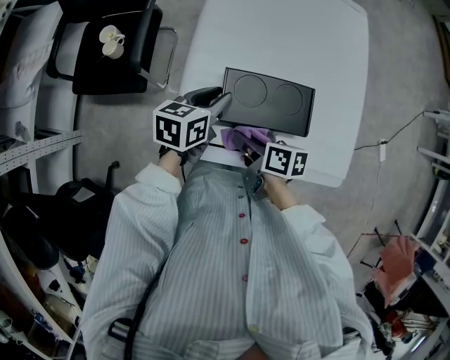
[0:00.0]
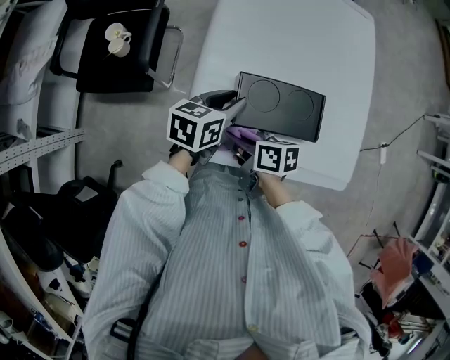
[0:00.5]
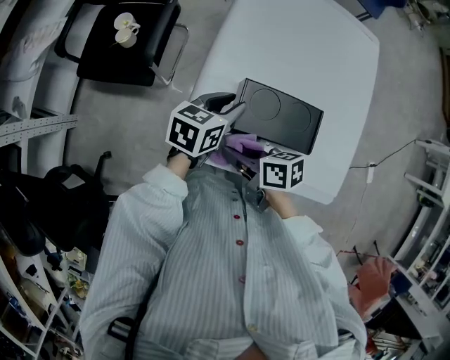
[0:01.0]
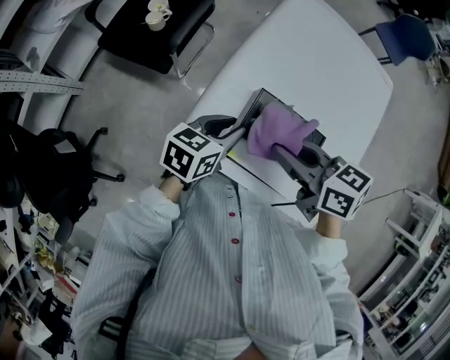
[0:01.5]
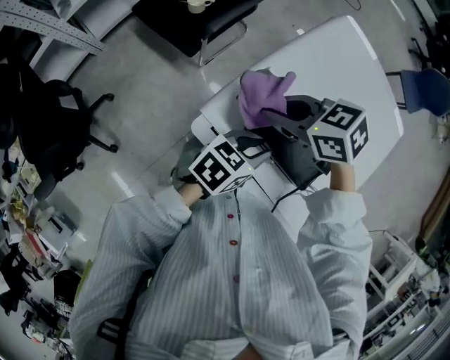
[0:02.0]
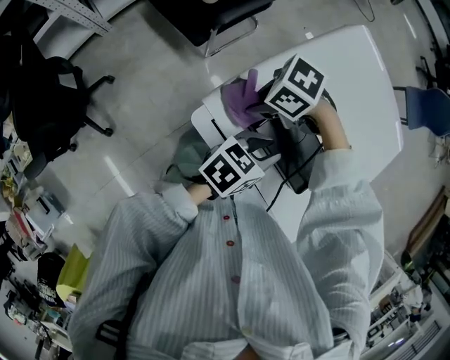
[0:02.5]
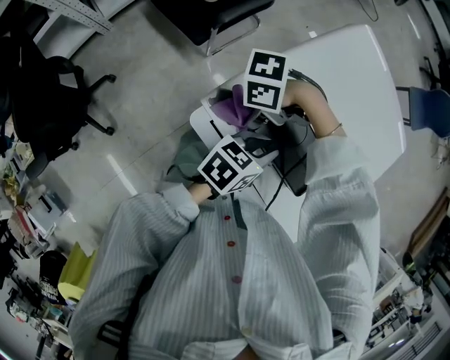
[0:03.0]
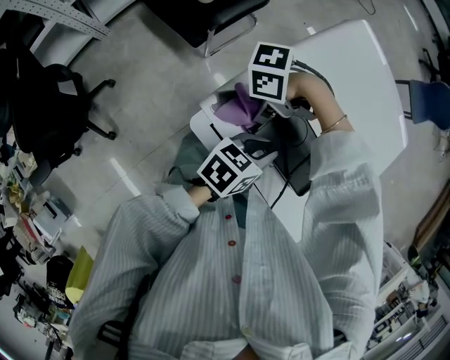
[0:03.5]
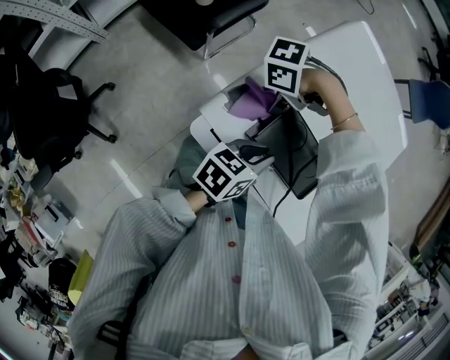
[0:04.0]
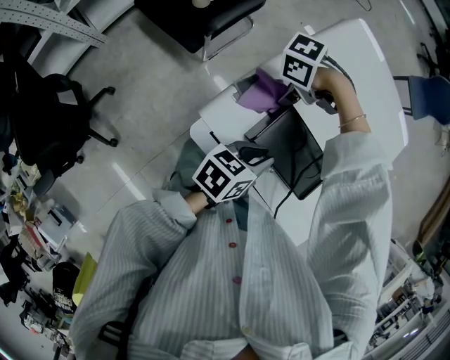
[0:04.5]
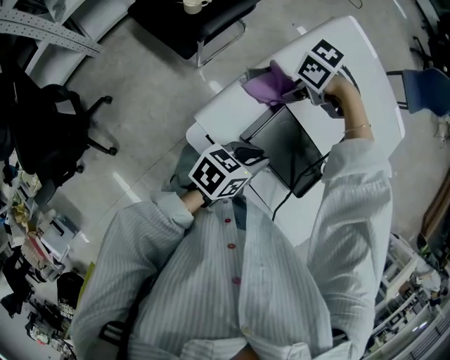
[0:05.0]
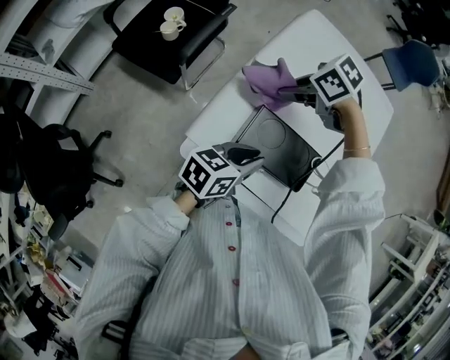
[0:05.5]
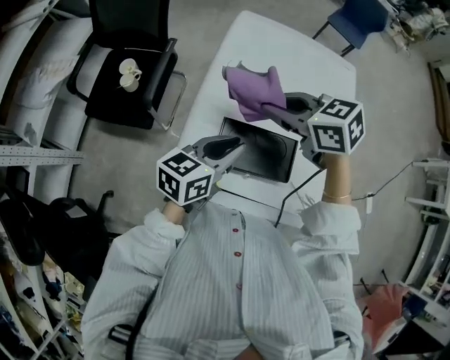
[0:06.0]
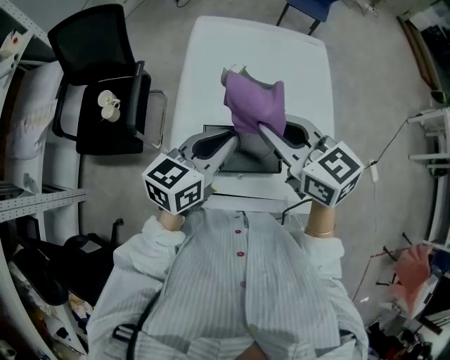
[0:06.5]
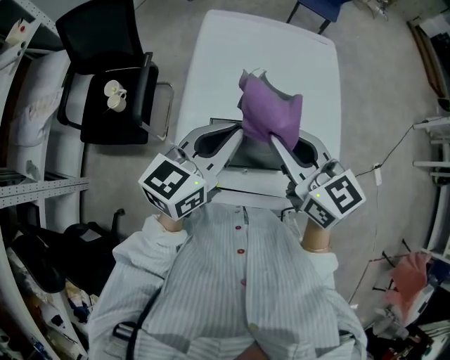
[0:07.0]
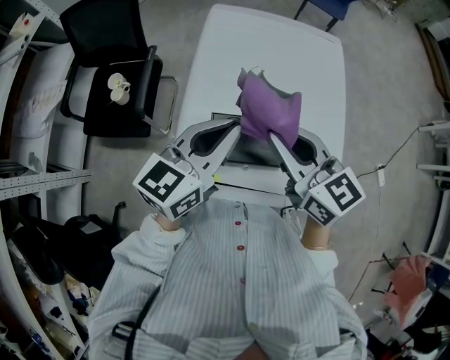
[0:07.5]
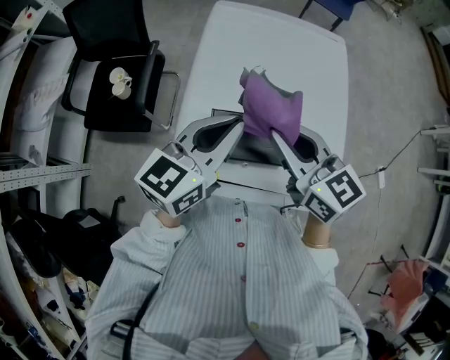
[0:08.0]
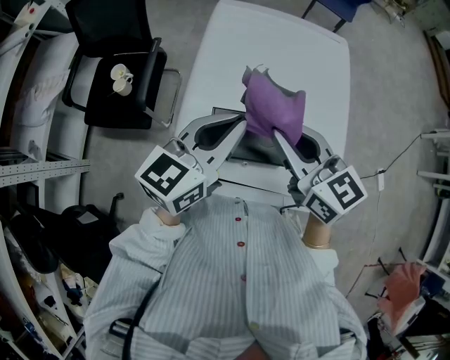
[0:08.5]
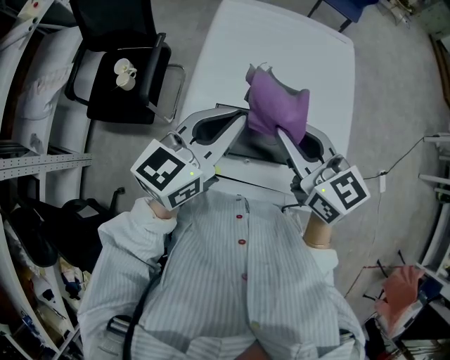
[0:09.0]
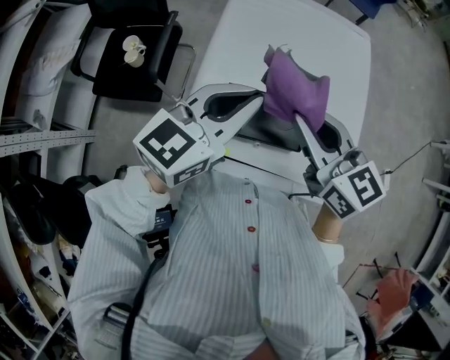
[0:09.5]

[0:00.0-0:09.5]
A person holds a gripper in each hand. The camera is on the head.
0:00.0 to 0:02.0: The left gripper ends up roughly 10 cm from where it was; the right gripper is displaced upward by roughly 15 cm, and rolls counterclockwise, seen from behind, by roughly 70 degrees.
0:02.0 to 0:04.0: The right gripper shifts about 15 cm downward, and rotates some 60 degrees.
0:04.0 to 0:05.5: The right gripper moves approximately 15 cm, and turns by roughly 50 degrees.
0:05.5 to 0:07.5: The left gripper is displaced upward by about 20 cm, and swivels about 30 degrees, while the right gripper changes place by some 25 cm, and tilts its fingers some 40 degrees upward.
0:07.5 to 0:09.5: There are only small adjustments of the grippers.

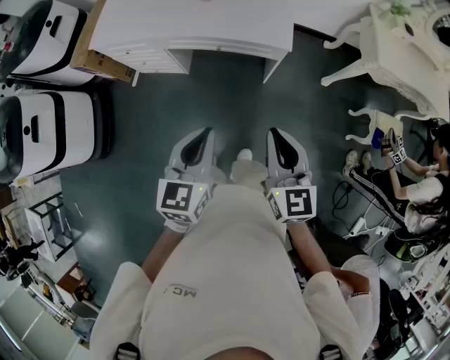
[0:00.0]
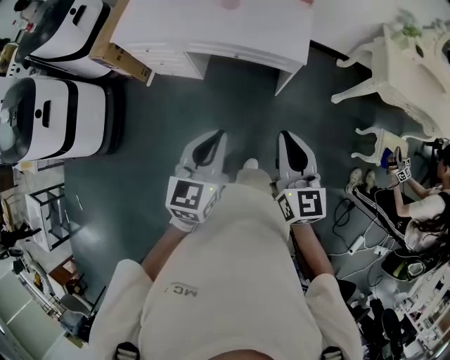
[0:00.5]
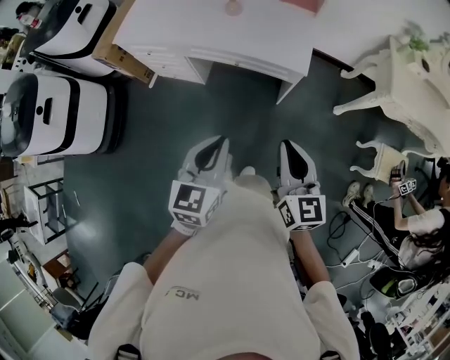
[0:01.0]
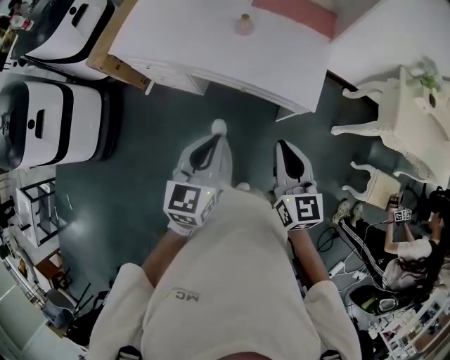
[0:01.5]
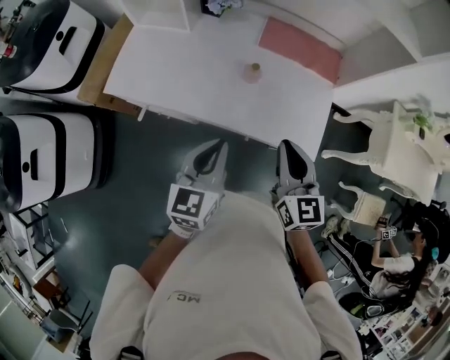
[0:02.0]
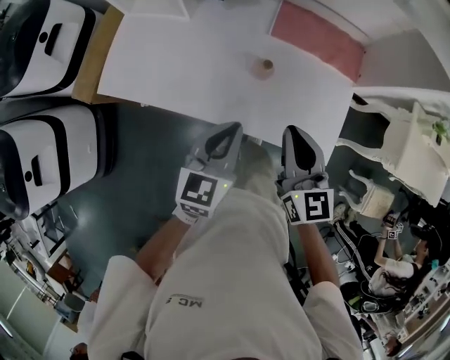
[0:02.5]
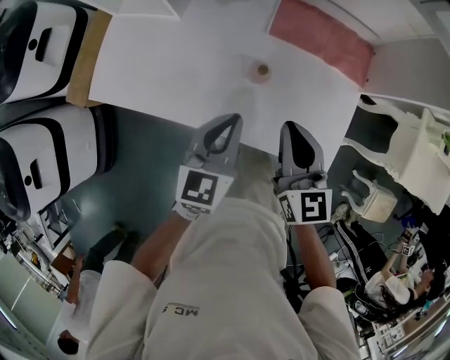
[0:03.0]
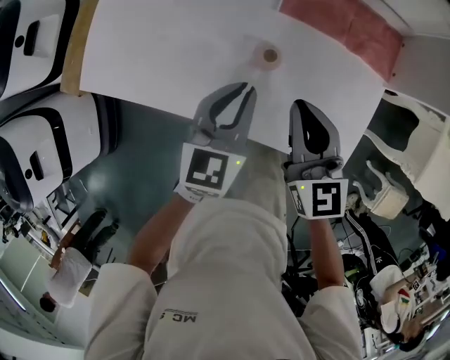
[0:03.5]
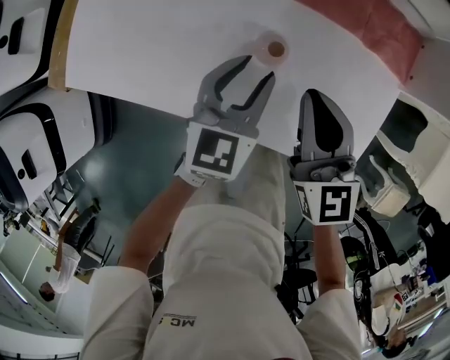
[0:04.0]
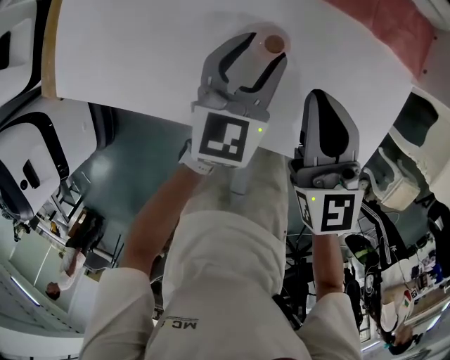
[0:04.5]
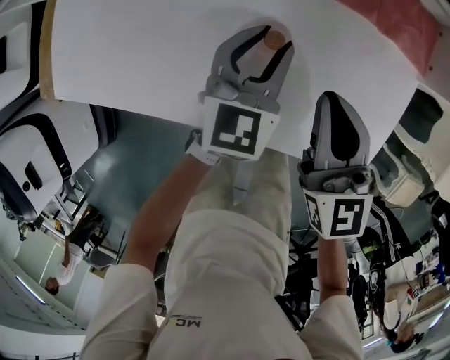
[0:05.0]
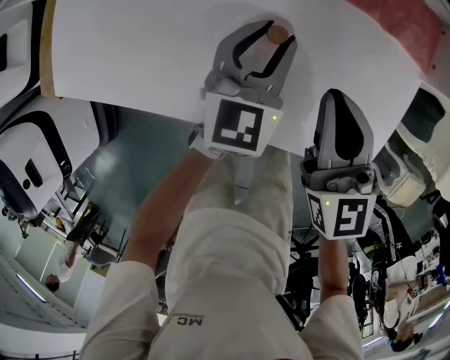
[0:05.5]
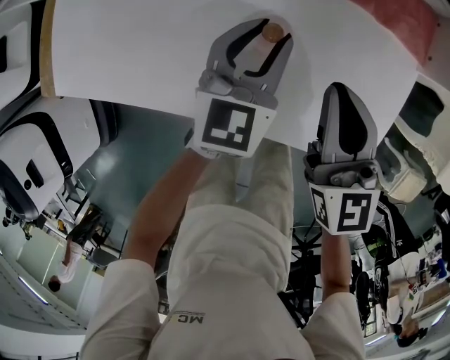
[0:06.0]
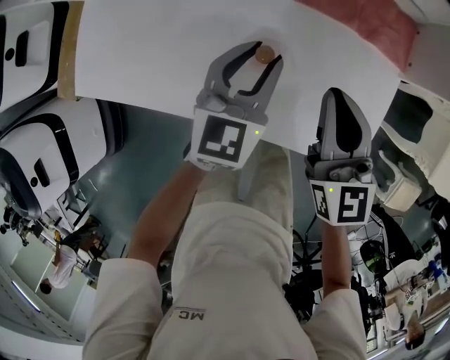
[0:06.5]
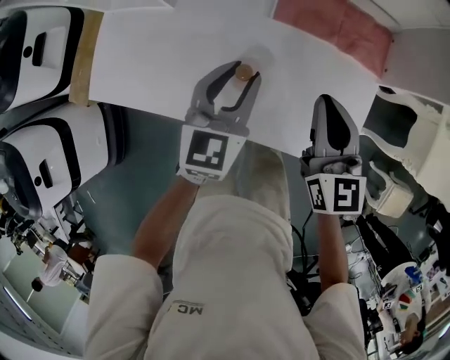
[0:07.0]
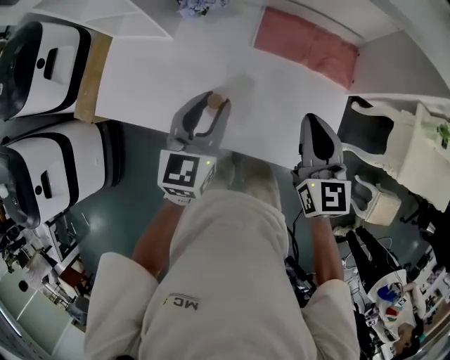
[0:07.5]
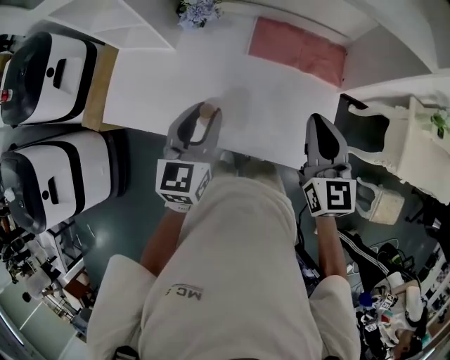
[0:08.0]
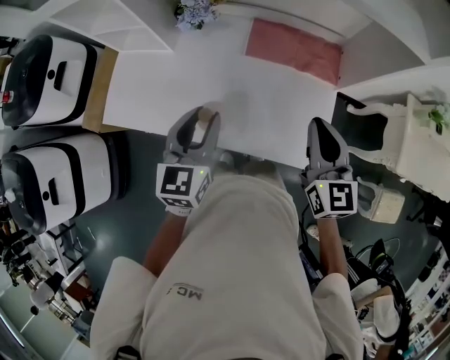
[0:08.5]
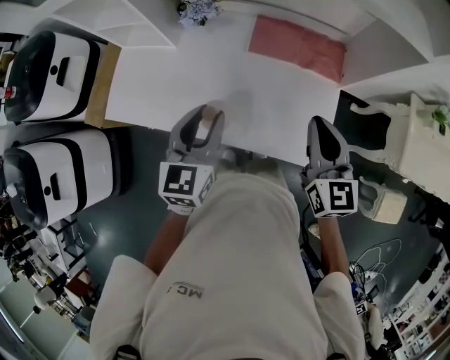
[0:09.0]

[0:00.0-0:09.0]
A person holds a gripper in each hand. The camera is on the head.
0:00.0 to 0:02.0: The two grippers travel together, forward, about 40 cm.
0:02.0 to 0:04.5: The two grippers go roughly 35 cm forward and downward. The left gripper opens.
0:04.5 to 0:07.0: The grippers both shift upward by some 15 cm.
0:07.0 to 0:09.0: The right gripper is displaced upward, backward and to the right by approximately 15 cm. Meanwhile the left gripper shifts roughly 15 cm upward and backward.

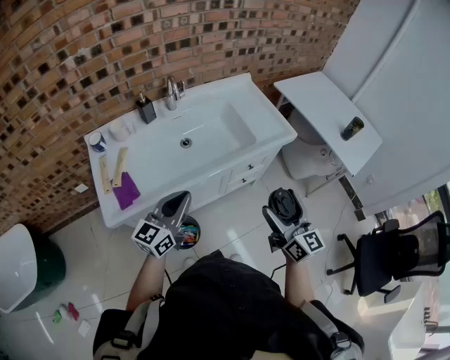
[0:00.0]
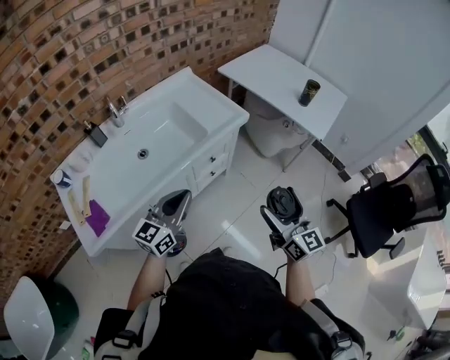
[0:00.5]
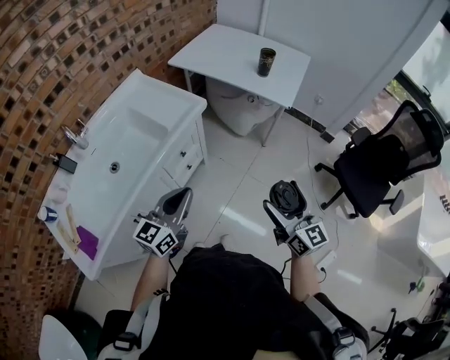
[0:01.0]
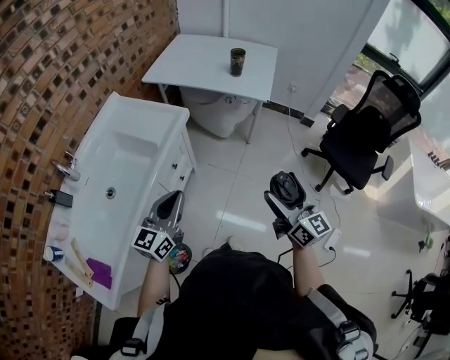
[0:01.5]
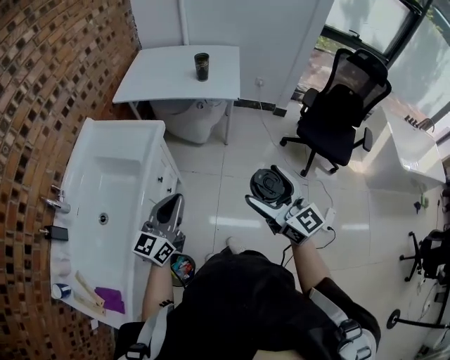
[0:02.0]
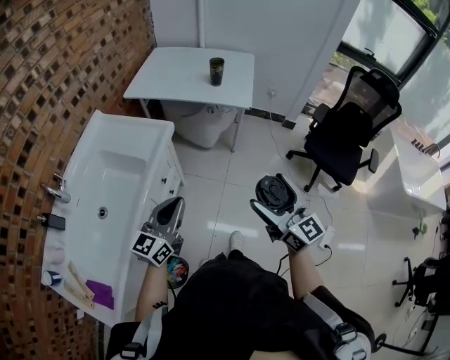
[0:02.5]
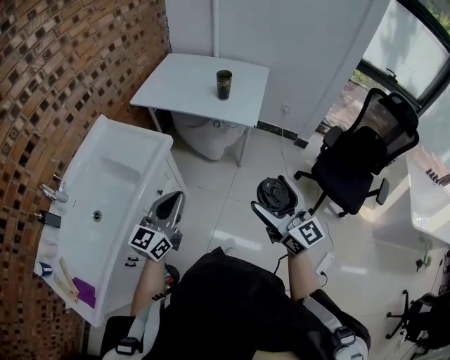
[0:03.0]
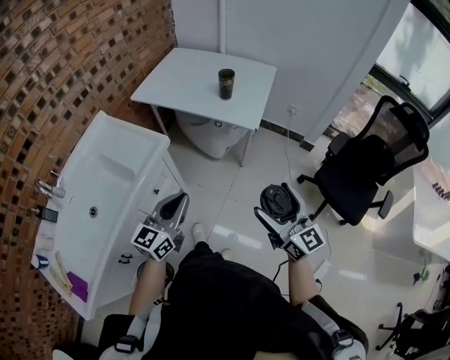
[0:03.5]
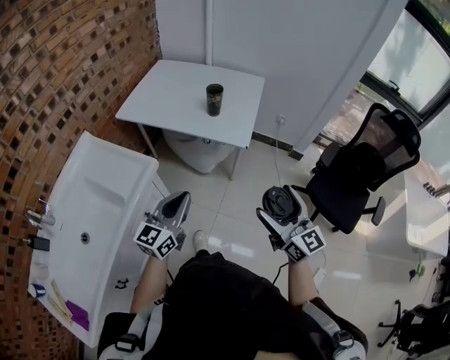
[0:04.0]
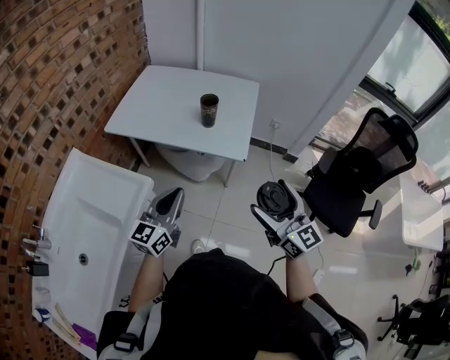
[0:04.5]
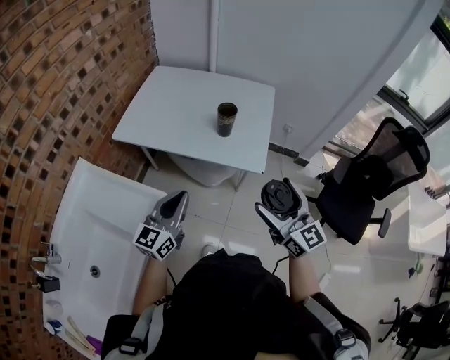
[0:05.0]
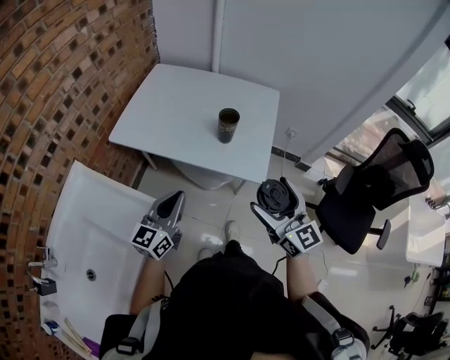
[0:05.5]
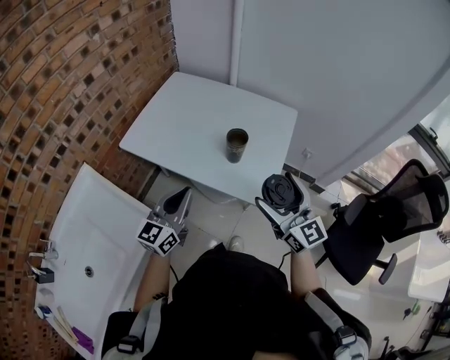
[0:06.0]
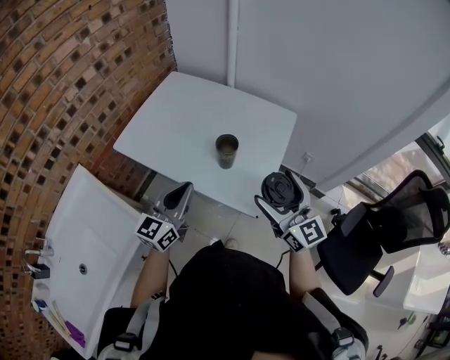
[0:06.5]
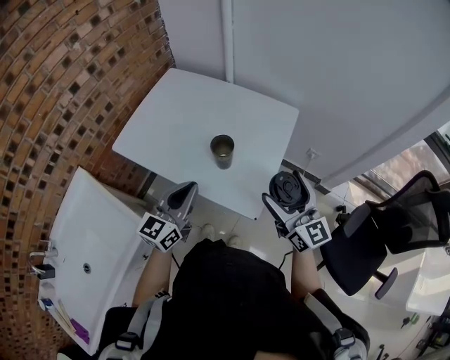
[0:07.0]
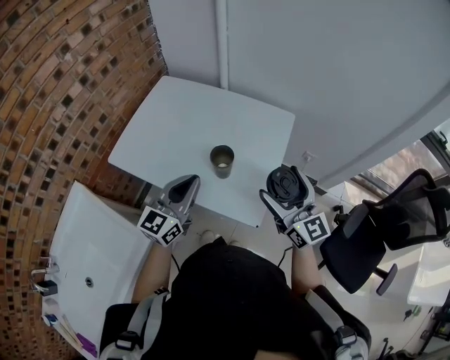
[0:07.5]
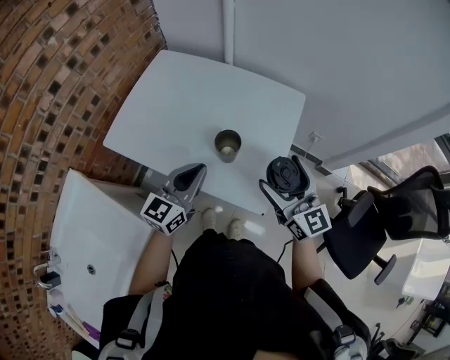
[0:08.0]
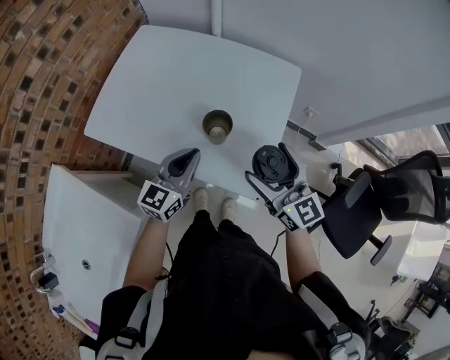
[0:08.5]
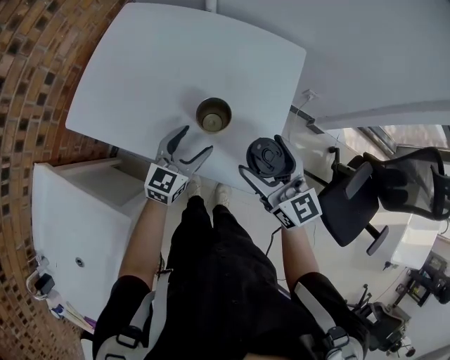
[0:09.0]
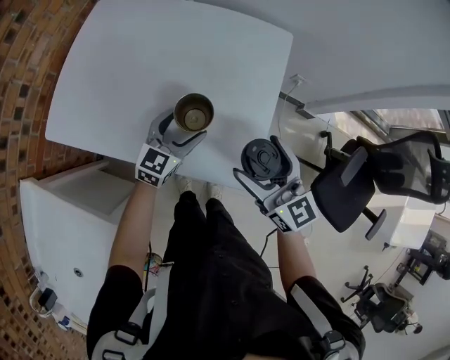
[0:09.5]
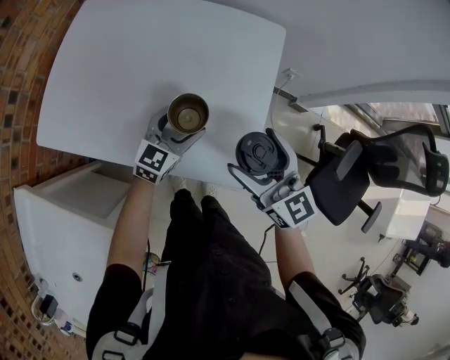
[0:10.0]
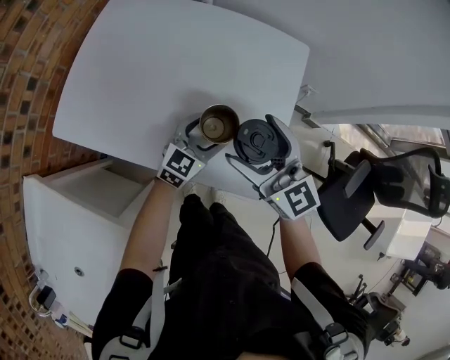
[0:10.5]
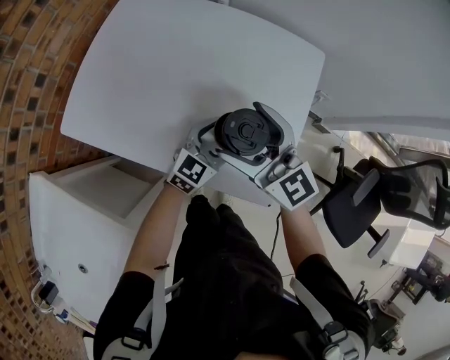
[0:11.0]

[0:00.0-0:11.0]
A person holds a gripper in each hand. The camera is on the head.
0:00.0 to 0:02.0: The left gripper changes place by approximately 25 cm, and swivels roughly 40 degrees, while the right gripper shifts by approximately 20 cm, and changes its angle by about 40 degrees.
0:02.0 to 0:03.5: Both grippers travel together forward and to the right, roughly 20 cm.
0:03.5 to 0:05.5: The two grippers go roughly 30 cm forward.
0:05.5 to 0:07.5: Both grippers move forward and to the right, about 20 cm.
0:07.5 to 0:09.0: The right gripper moves downward, roughly 10 cm. The left gripper moves downward, some 20 cm, and opens.
0:09.0 to 0:11.0: The left gripper ends up approximately 10 cm from where it was, while the right gripper goes some 15 cm to the left and forward.
